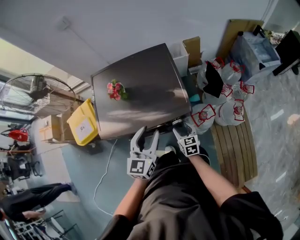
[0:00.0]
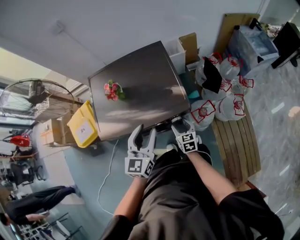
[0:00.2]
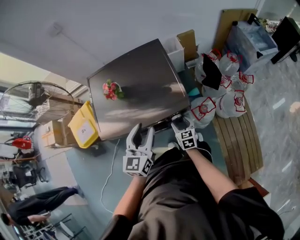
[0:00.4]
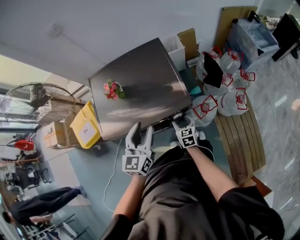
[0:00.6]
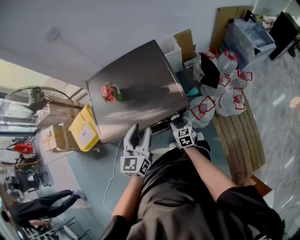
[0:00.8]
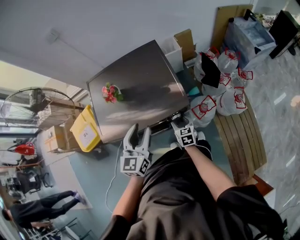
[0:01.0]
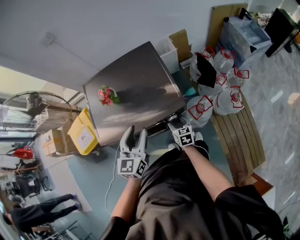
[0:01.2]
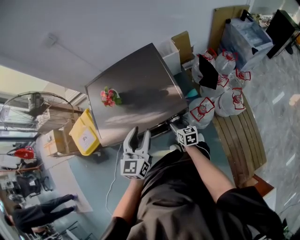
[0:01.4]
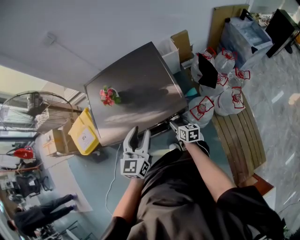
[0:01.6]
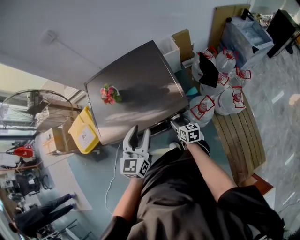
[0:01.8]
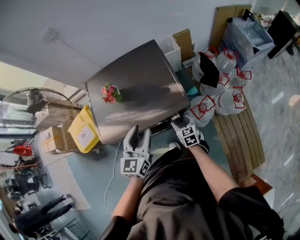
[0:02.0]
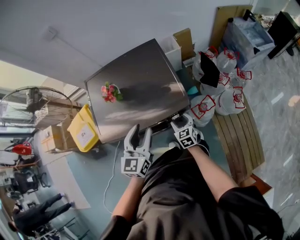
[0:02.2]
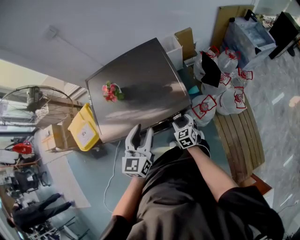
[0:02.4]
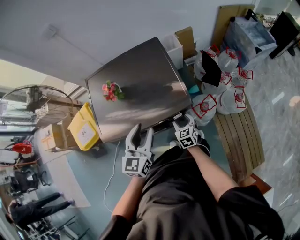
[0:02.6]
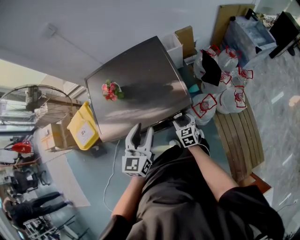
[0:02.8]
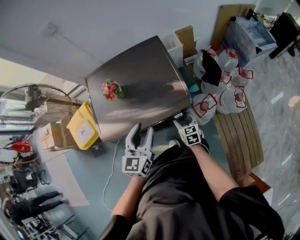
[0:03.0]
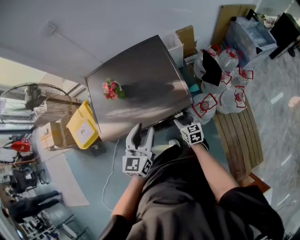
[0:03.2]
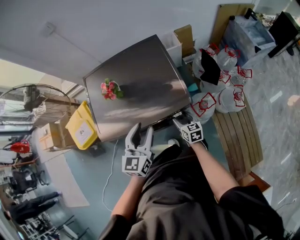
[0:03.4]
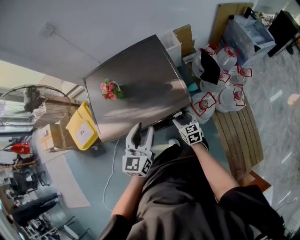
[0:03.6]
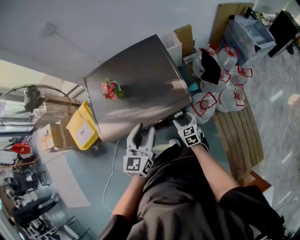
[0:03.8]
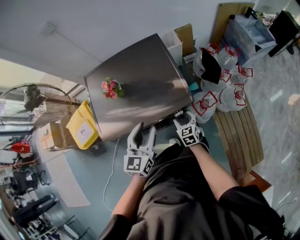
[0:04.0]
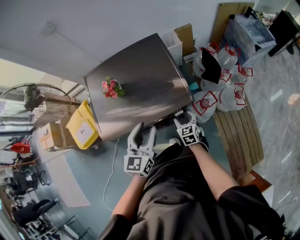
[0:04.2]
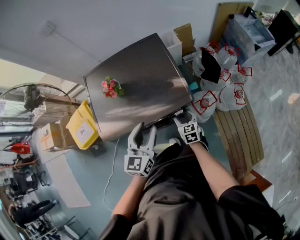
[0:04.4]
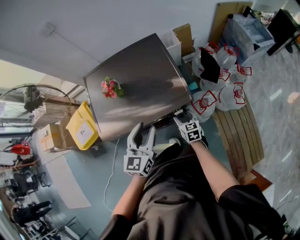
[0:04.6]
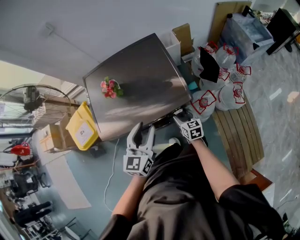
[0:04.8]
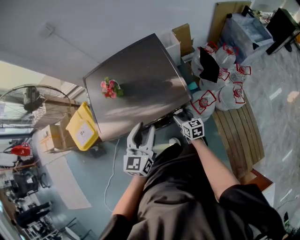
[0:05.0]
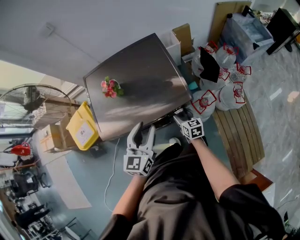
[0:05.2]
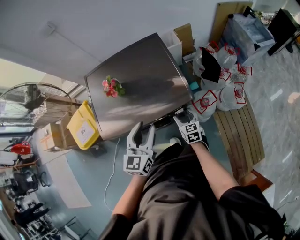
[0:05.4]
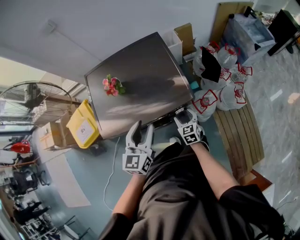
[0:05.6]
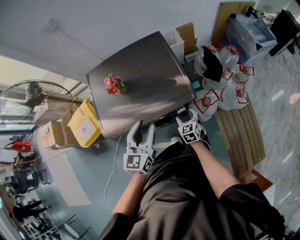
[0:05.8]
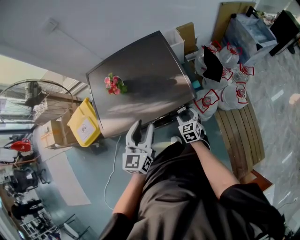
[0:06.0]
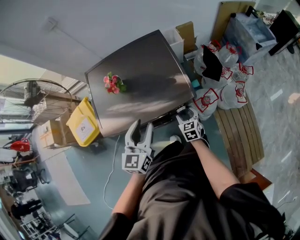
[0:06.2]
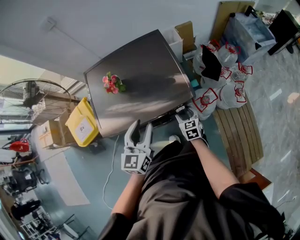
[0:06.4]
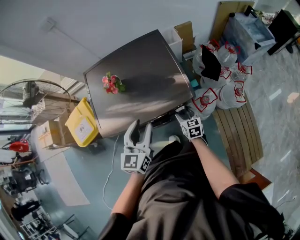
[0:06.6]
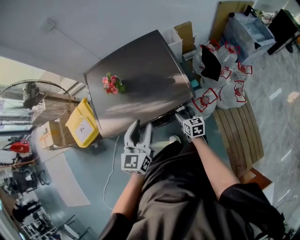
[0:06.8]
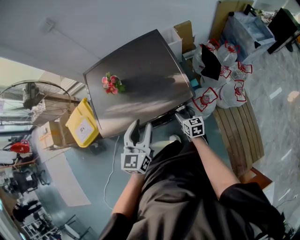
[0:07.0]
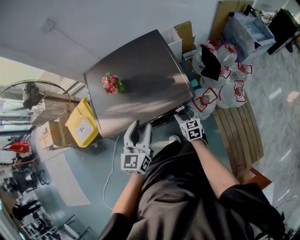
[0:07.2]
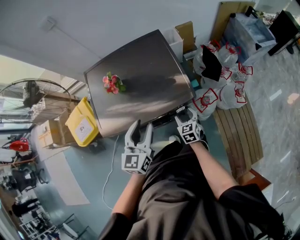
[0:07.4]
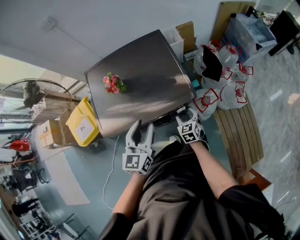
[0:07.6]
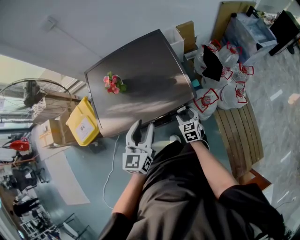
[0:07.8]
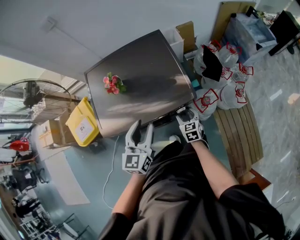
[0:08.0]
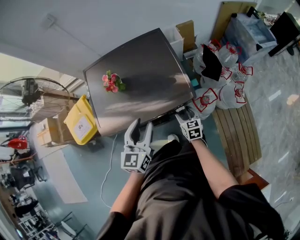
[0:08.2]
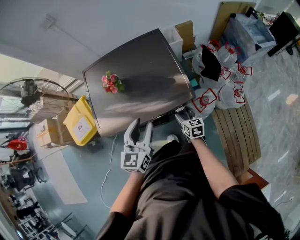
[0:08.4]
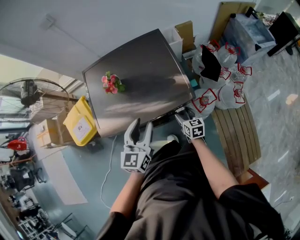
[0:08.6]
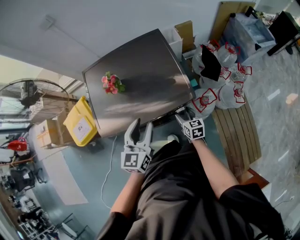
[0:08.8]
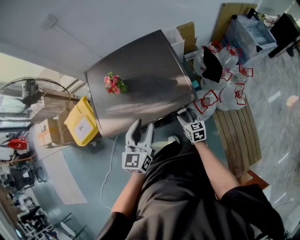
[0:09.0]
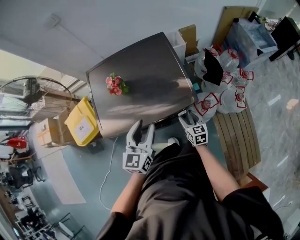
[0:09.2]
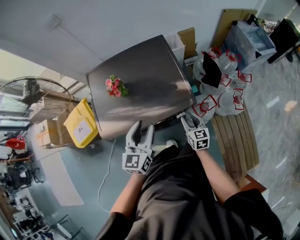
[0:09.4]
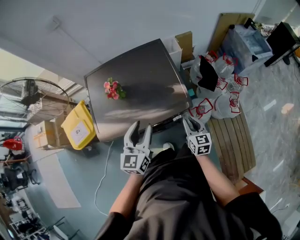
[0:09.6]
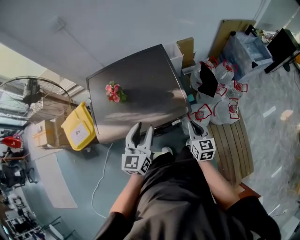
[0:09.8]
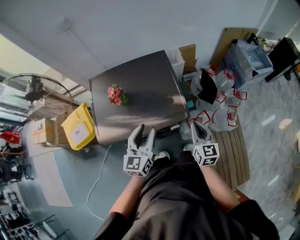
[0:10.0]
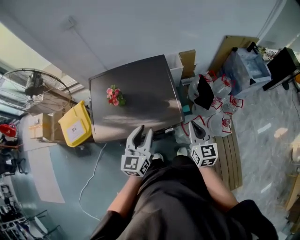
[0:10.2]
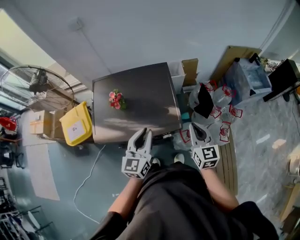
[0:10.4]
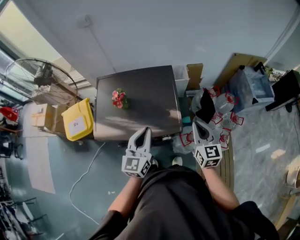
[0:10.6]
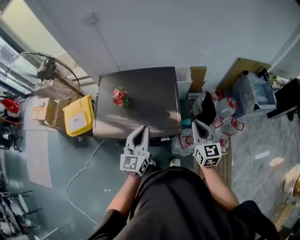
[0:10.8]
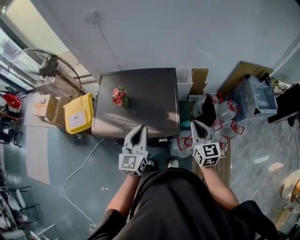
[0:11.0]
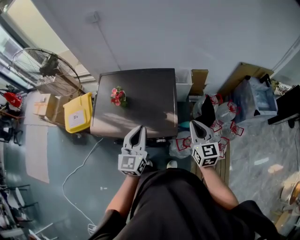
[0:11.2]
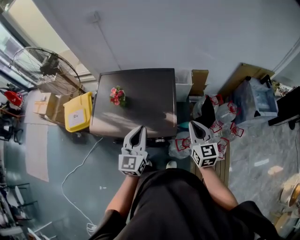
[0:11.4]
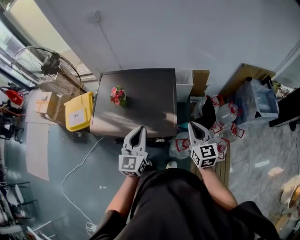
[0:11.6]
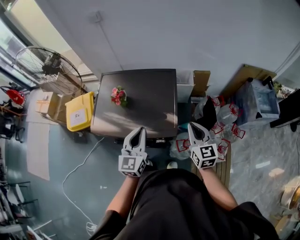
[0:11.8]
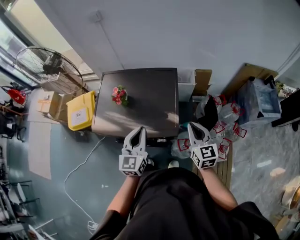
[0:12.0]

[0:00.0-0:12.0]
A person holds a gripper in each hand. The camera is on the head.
0:00.0 to 0:01.6: The right gripper swivels about 20 degrees.
0:01.6 to 0:03.0: The right gripper rotates some 20 degrees.
0:03.0 to 0:06.0: The grippers move only a little.
0:09.0 to 0:10.4: The left gripper travels upward and to the right by approximately 10 cm, and closes up, while the right gripper goes approximately 30 cm upward, rotates some 20 degrees, and closes.
0:10.4 to 0:12.0: The right gripper ends up about 5 cm from where it was.

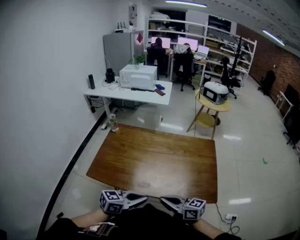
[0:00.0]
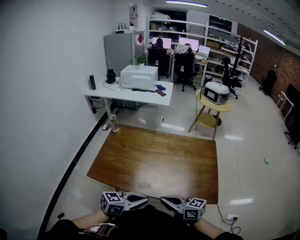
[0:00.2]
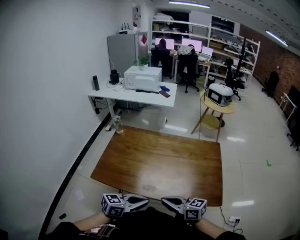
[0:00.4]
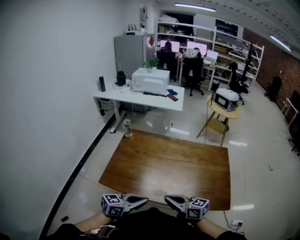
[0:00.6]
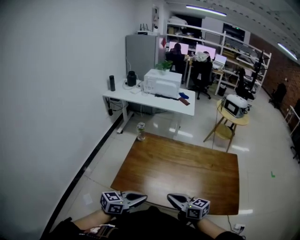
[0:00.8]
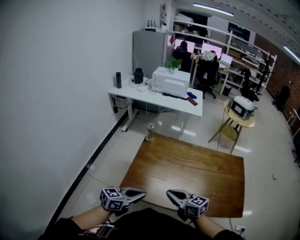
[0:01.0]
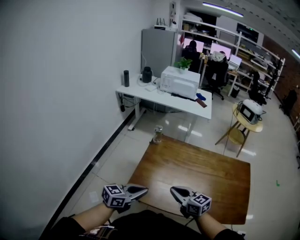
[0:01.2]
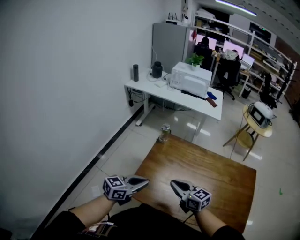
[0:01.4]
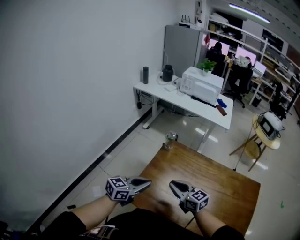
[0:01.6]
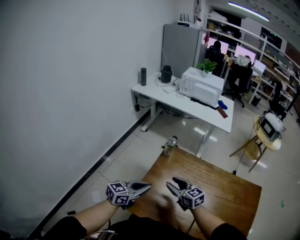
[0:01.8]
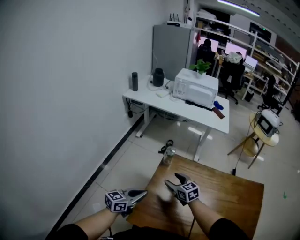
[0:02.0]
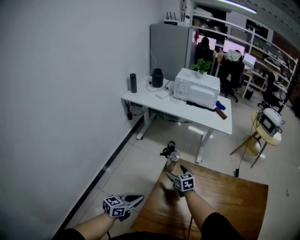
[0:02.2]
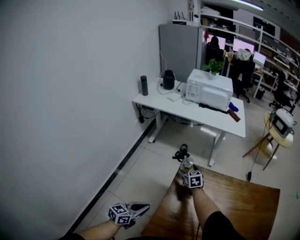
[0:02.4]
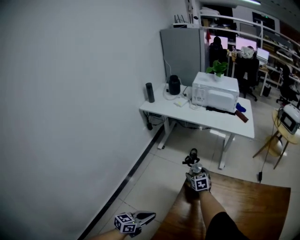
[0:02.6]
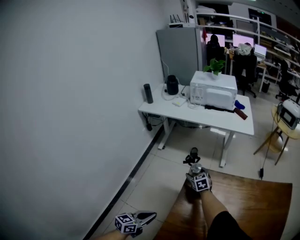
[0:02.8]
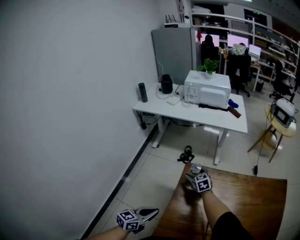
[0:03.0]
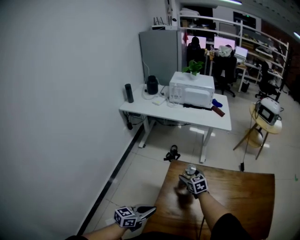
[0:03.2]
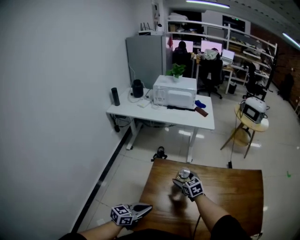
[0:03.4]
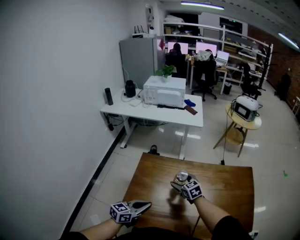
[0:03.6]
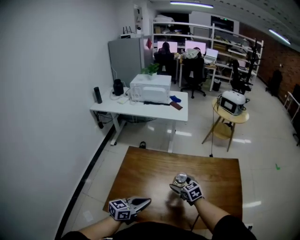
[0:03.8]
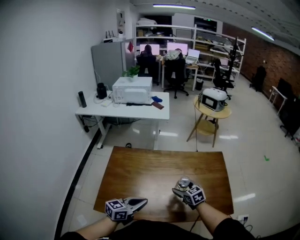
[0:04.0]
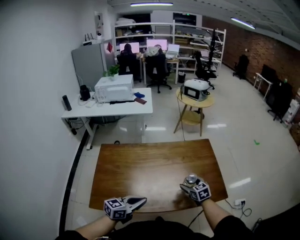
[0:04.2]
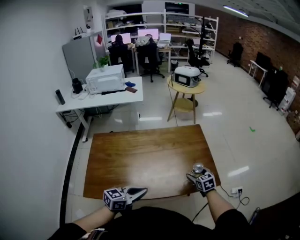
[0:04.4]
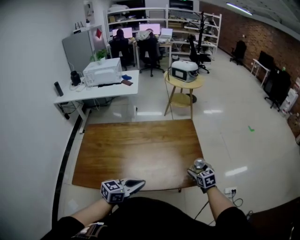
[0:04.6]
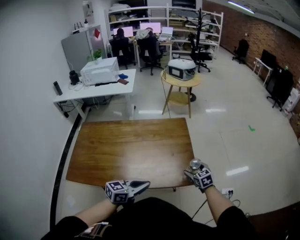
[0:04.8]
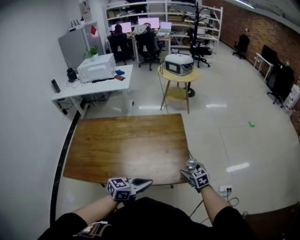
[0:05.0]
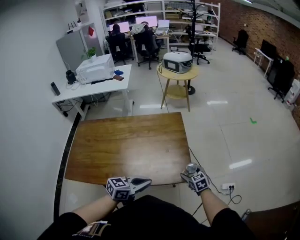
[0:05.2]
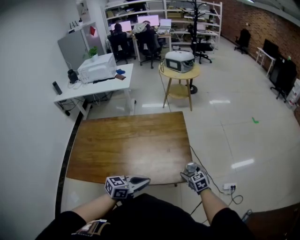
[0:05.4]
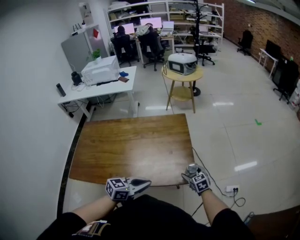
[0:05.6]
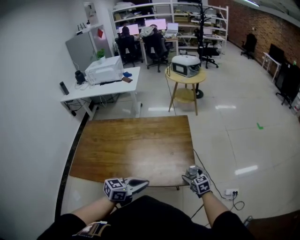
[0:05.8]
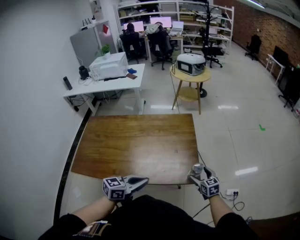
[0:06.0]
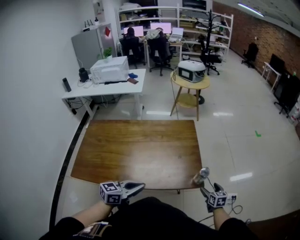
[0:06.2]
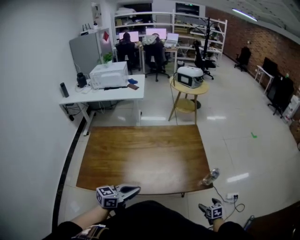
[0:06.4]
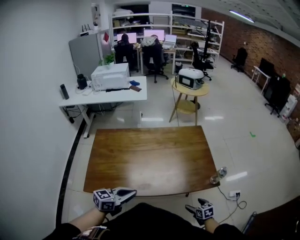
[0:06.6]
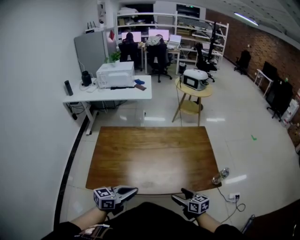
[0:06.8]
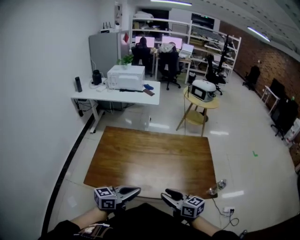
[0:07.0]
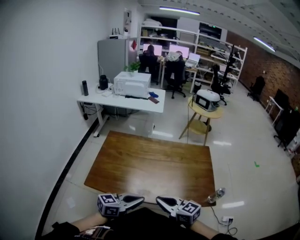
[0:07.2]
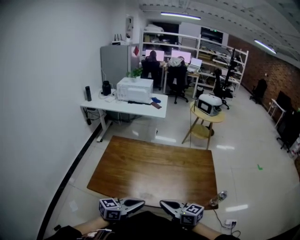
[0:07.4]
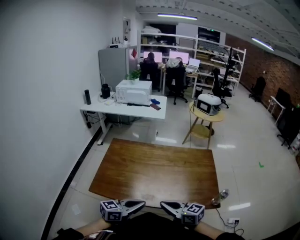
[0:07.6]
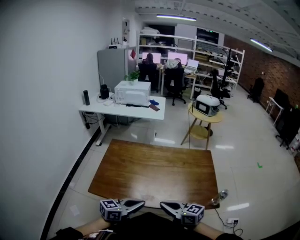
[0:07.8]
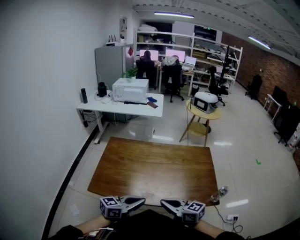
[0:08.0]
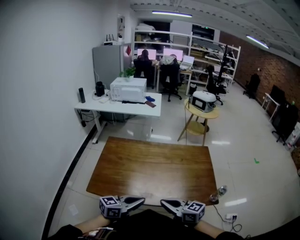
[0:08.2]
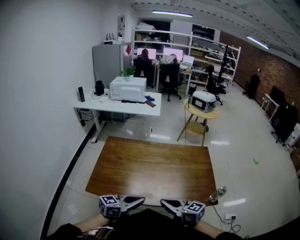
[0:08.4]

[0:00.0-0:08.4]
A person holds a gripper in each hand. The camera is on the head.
0:00.0 to 0:01.4: The left gripper ends up roughly 40 cm from where it was; the right gripper shifts by approximately 40 cm.
0:01.4 to 0:02.8: The right gripper shifts roughly 40 cm forward and downward, swivels roughly 30 degrees, and opens its fingers. Meanwhile the left gripper goes some 20 cm to the left, forward and downward.
0:02.8 to 0:04.2: The two grippers travel together, to the right, approximately 60 cm. The left gripper rotates about 30 degrees.
0:04.2 to 0:05.6: Both grippers travel together to the right, about 30 cm.
0:05.6 to 0:07.0: The left gripper shifts about 30 cm to the left, and swivels roughly 20 degrees; the right gripper is displaced to the left, backward and upward by approximately 40 cm, turns by about 40 degrees, and closes up.
0:07.0 to 0:08.4: The right gripper closes.

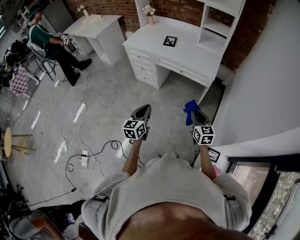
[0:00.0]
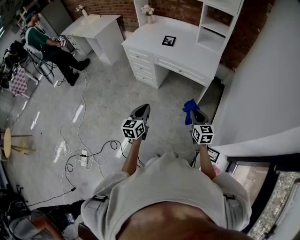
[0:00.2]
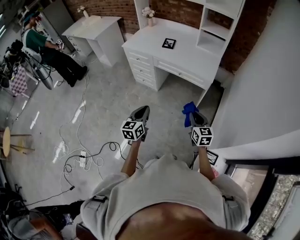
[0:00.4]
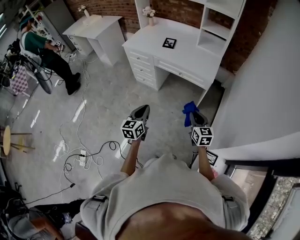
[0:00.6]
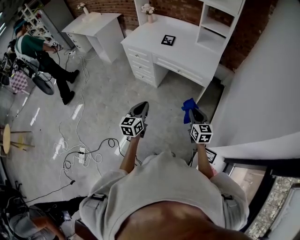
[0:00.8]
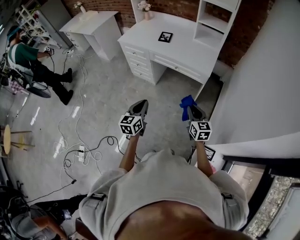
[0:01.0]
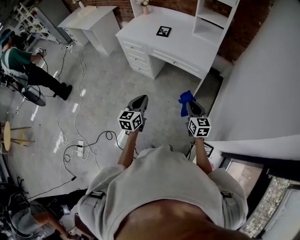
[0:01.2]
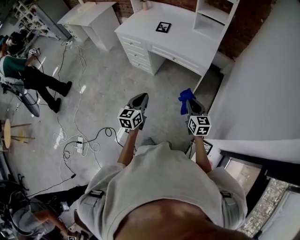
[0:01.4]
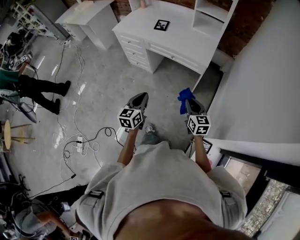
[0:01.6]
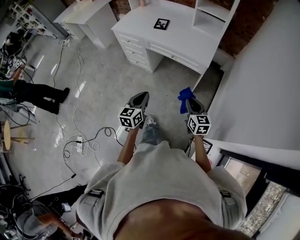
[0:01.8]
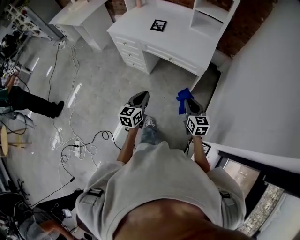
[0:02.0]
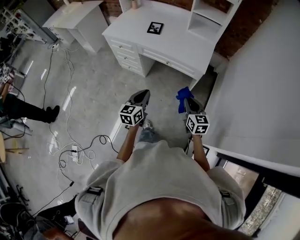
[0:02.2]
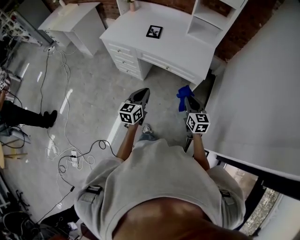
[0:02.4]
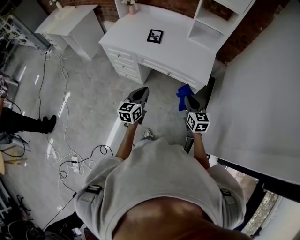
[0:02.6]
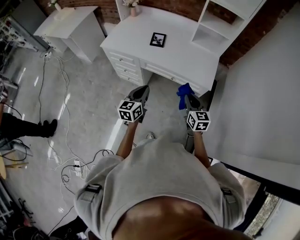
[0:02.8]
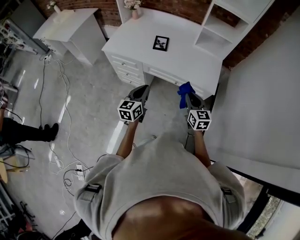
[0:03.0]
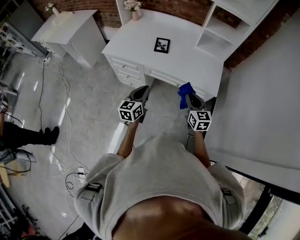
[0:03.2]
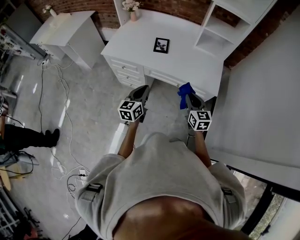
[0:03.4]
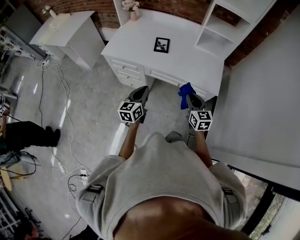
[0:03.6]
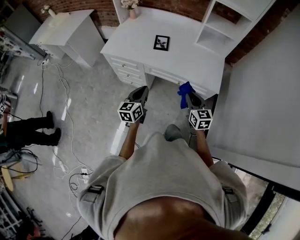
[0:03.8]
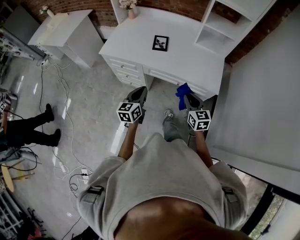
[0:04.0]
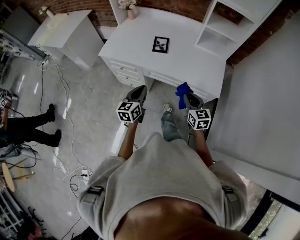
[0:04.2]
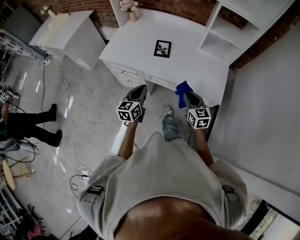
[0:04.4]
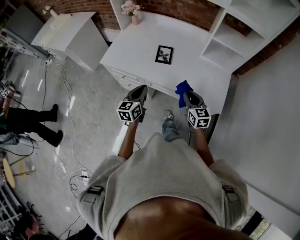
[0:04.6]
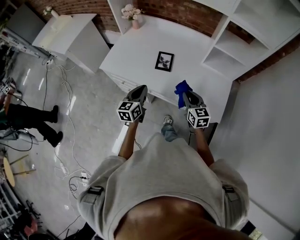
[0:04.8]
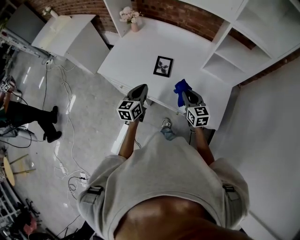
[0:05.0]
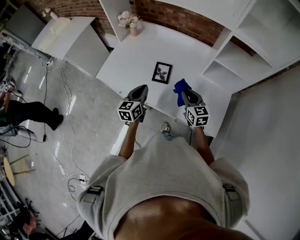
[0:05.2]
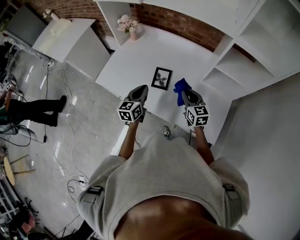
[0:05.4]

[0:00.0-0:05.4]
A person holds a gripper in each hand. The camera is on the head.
0:00.0 to 0:01.4: The two grippers go roughly 5 cm to the right.
0:01.4 to 0:02.8: The left gripper travels forward by approximately 30 cm. The right gripper is displaced forward and to the left by roughly 25 cm.
0:02.8 to 0:04.0: The right gripper goes some 10 cm to the left and forward. Meanwhile the left gripper moves forward and to the left, roughly 10 cm.
0:04.0 to 0:05.4: The two grippers go approximately 35 cm forward.
